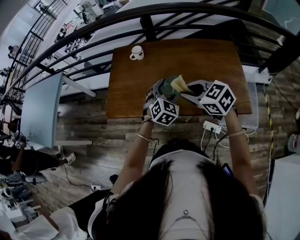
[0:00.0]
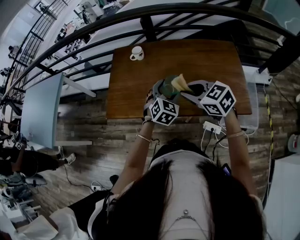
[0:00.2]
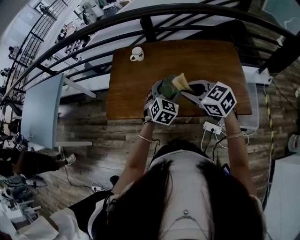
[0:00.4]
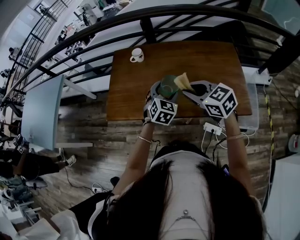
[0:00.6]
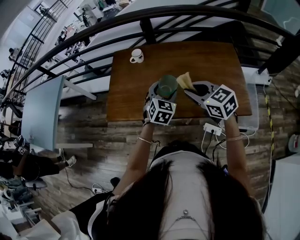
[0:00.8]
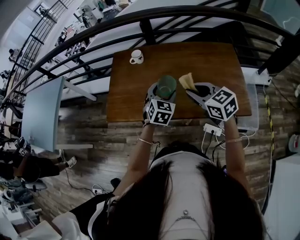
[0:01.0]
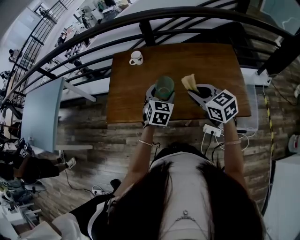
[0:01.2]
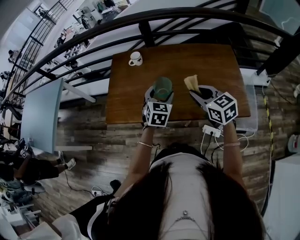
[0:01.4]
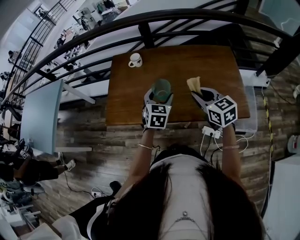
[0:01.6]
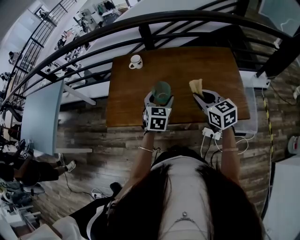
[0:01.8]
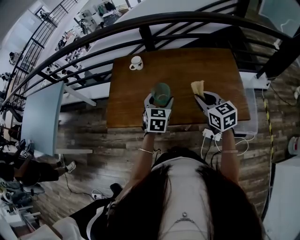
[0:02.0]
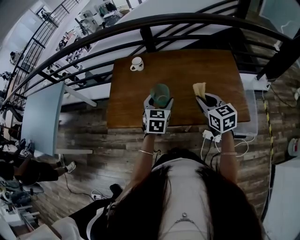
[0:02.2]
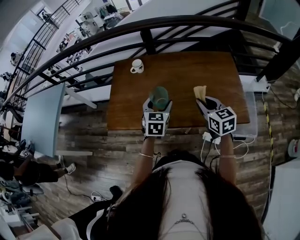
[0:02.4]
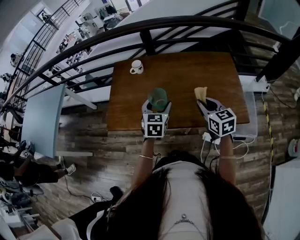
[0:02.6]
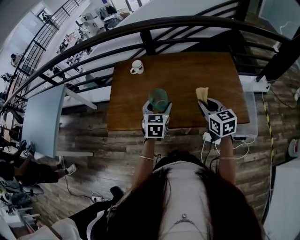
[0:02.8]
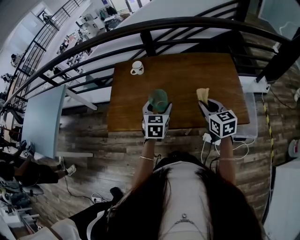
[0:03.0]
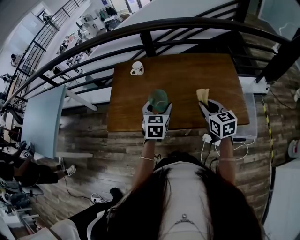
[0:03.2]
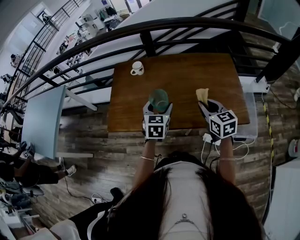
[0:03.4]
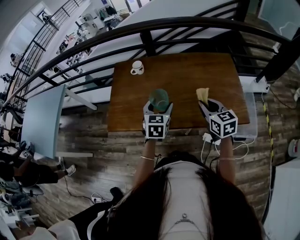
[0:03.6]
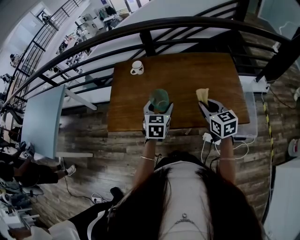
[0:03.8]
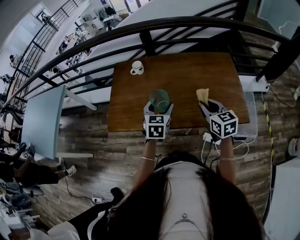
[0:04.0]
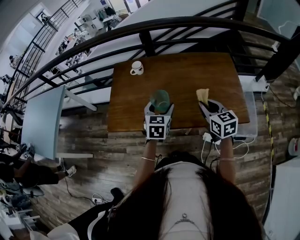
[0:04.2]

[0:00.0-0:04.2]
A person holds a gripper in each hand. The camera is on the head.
0:00.0 to 0:01.4: The right gripper travels to the right by about 5 cm, and turns by some 20 degrees; the left gripper turns by some 20 degrees.
0:01.4 to 0:02.8: The right gripper ends up approximately 5 cm from where it was.
0:02.8 to 0:04.2: Neither gripper changes place.

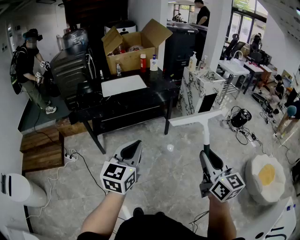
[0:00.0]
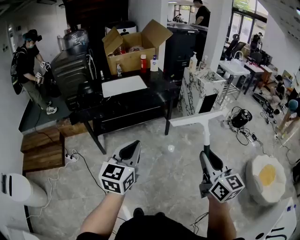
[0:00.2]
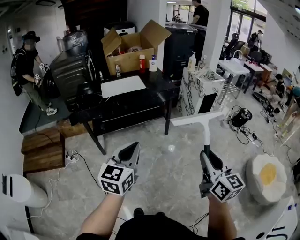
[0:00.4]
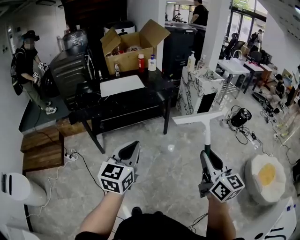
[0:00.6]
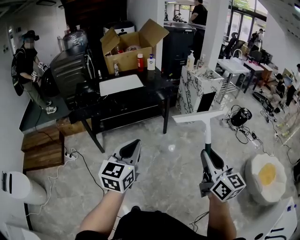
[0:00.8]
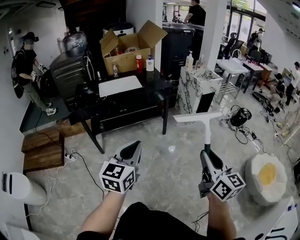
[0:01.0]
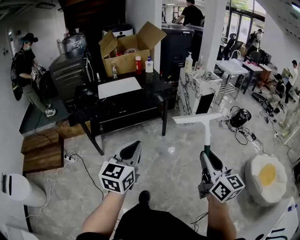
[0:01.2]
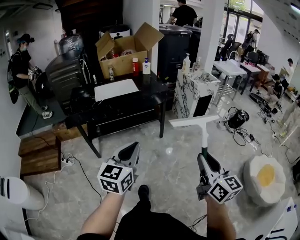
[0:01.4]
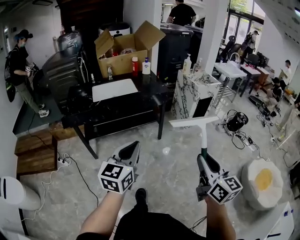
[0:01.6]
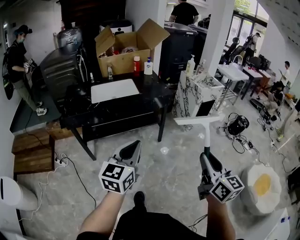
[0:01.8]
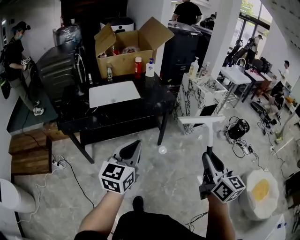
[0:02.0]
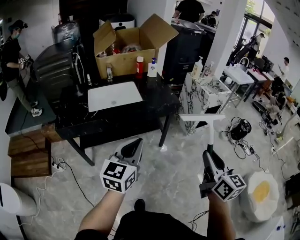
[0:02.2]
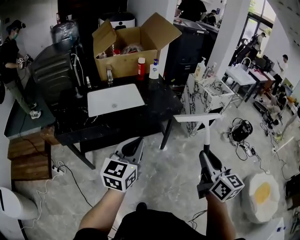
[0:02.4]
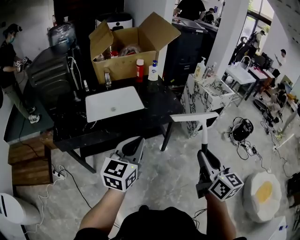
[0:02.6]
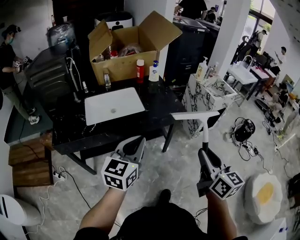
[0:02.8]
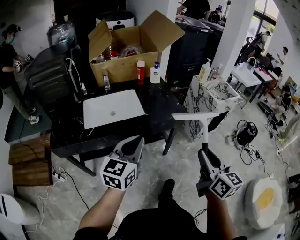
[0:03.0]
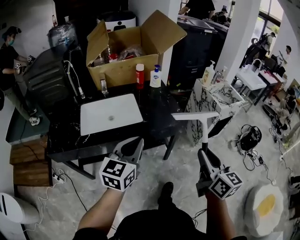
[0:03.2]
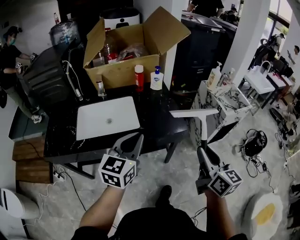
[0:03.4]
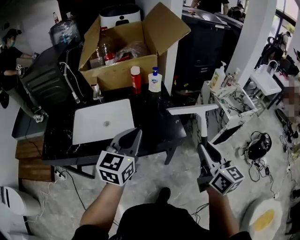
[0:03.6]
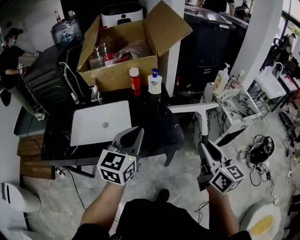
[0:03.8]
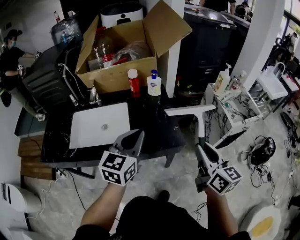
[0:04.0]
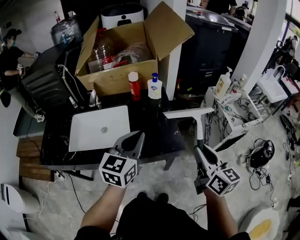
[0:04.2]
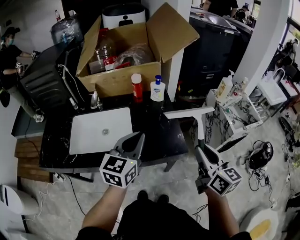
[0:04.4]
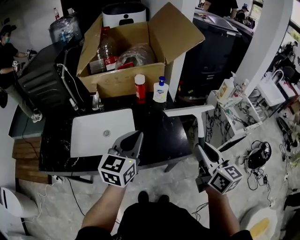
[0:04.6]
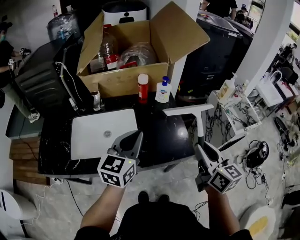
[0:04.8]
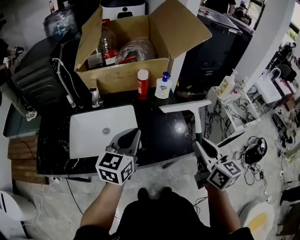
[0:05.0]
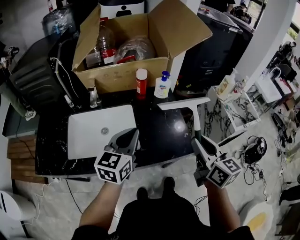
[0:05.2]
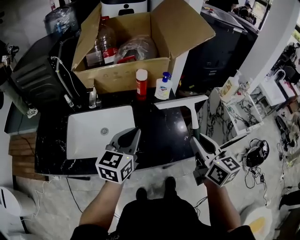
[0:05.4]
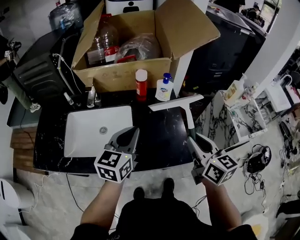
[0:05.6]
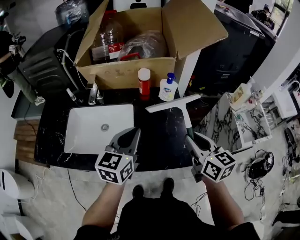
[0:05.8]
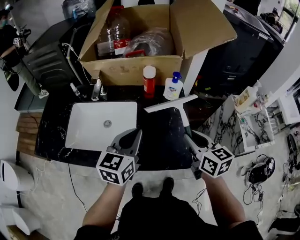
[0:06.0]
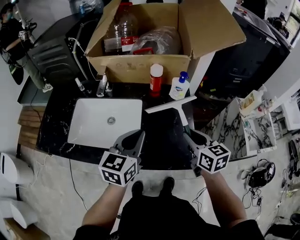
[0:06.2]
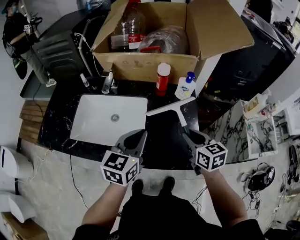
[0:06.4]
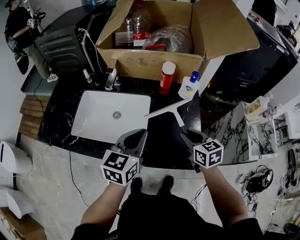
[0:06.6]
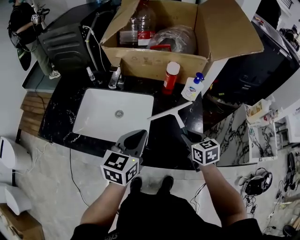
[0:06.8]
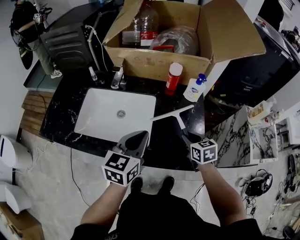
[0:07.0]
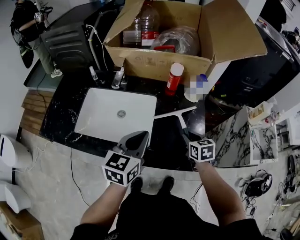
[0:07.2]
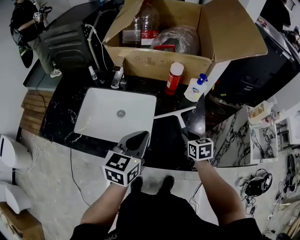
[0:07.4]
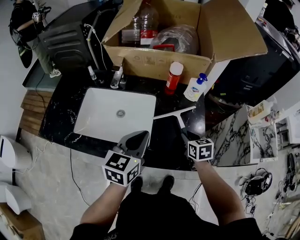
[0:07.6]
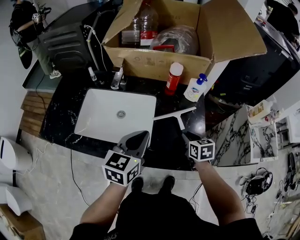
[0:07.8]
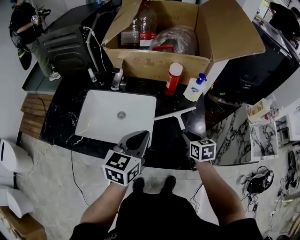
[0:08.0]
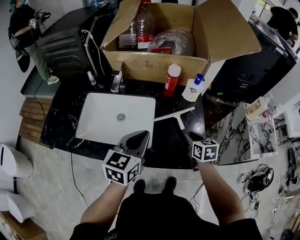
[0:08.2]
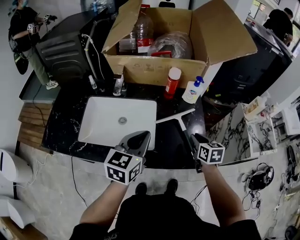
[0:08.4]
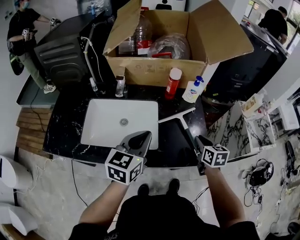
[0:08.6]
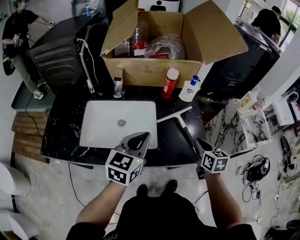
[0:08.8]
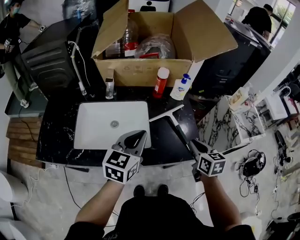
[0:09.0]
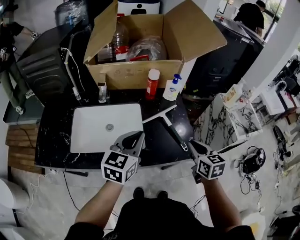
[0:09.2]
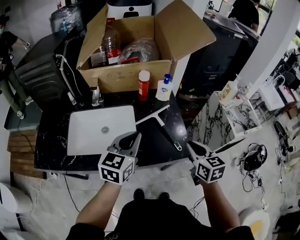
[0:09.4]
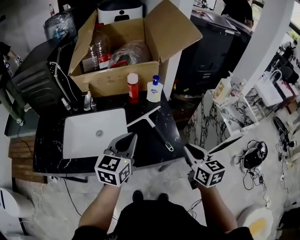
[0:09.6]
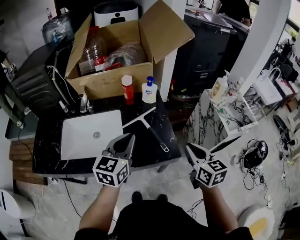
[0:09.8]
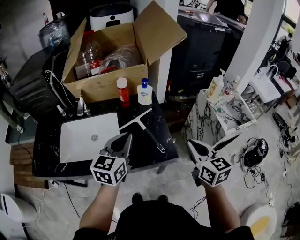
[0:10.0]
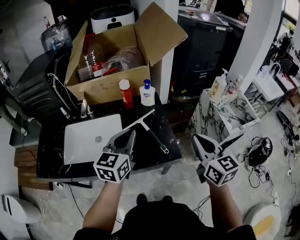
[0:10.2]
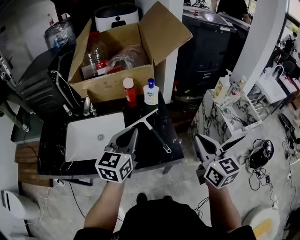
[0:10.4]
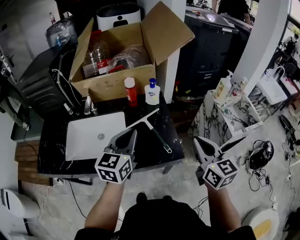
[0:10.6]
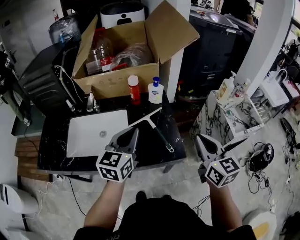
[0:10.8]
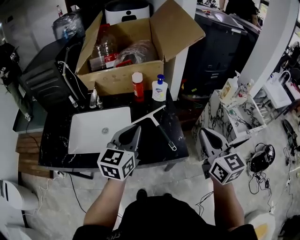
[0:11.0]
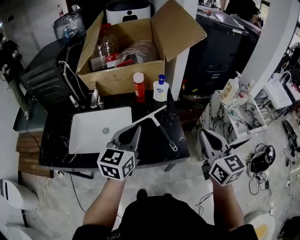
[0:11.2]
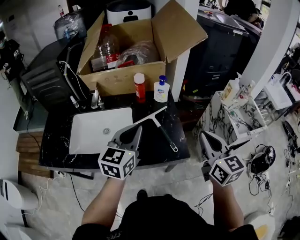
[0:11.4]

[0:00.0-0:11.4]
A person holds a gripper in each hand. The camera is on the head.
0:00.0 to 0:01.4: The grippers both shift to the right by approximately 5 cm.
0:01.4 to 0:02.8: The two grippers go approximately 40 cm forward.
0:02.8 to 0:04.2: The two grippers go about 35 cm forward.
0:04.2 to 0:05.6: The two grippers go roughly 15 cm forward and to the left.
0:05.6 to 0:07.2: The right gripper is displaced downward and forward by roughly 25 cm, and tips its fingers downward by some 30 degrees; the left gripper changes place by some 5 cm.
0:07.2 to 0:08.6: The right gripper travels upward by roughly 5 cm.
0:08.6 to 0:10.0: The left gripper is displaced to the right by approximately 15 cm. Meanwhile the right gripper moves upward, to the right and backward, about 20 cm.
0:10.0 to 0:11.4: The right gripper shifts by some 5 cm.

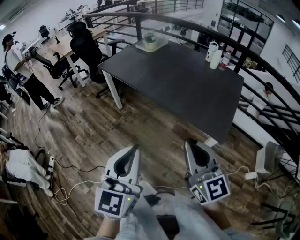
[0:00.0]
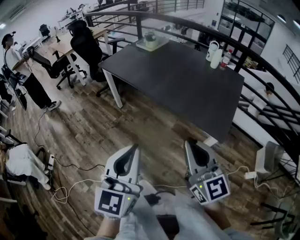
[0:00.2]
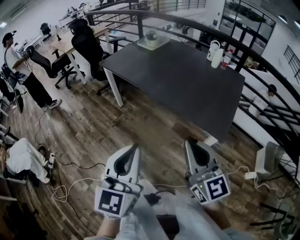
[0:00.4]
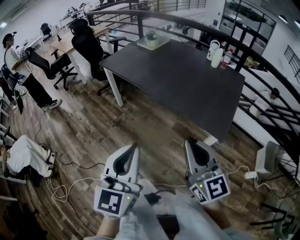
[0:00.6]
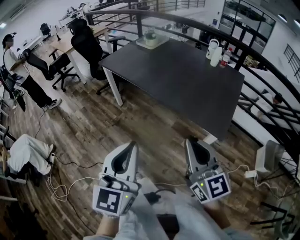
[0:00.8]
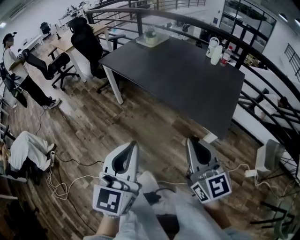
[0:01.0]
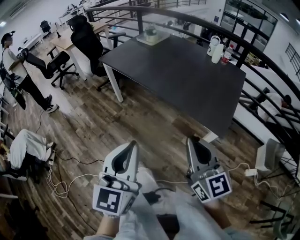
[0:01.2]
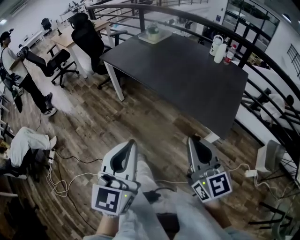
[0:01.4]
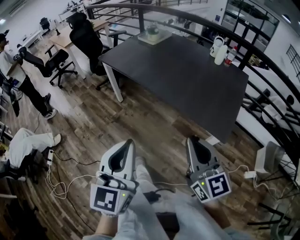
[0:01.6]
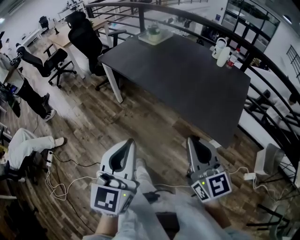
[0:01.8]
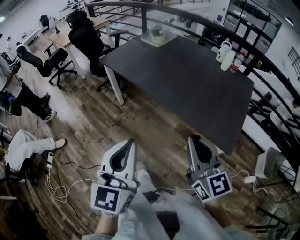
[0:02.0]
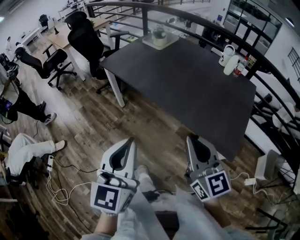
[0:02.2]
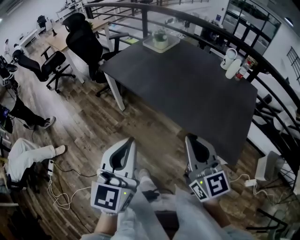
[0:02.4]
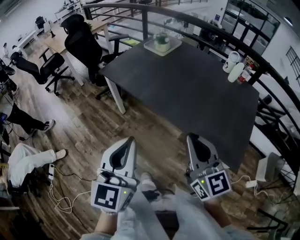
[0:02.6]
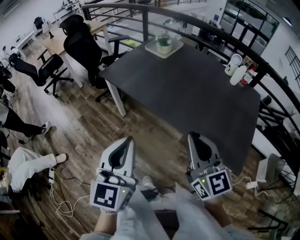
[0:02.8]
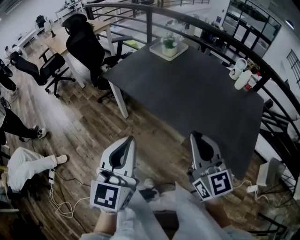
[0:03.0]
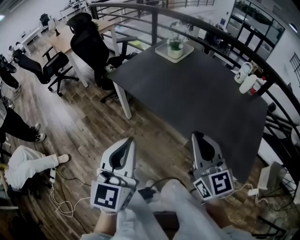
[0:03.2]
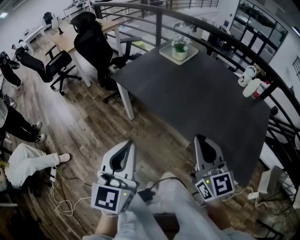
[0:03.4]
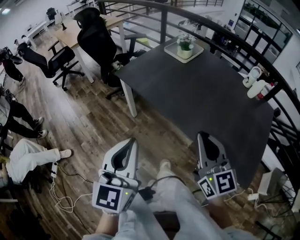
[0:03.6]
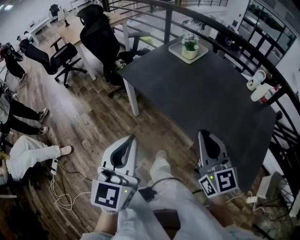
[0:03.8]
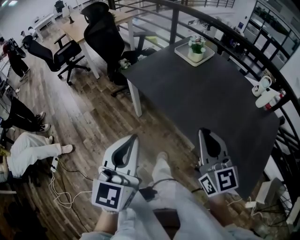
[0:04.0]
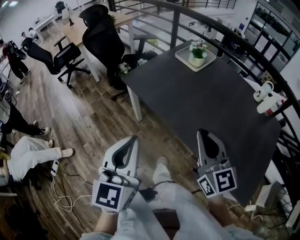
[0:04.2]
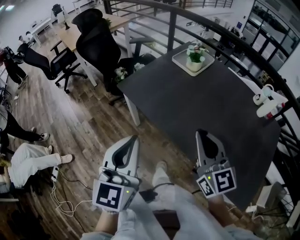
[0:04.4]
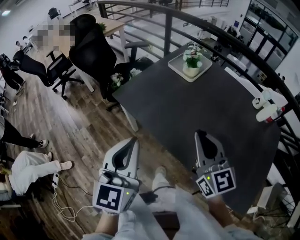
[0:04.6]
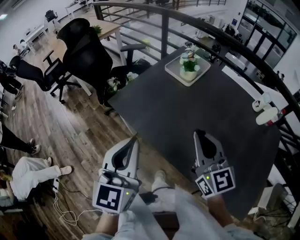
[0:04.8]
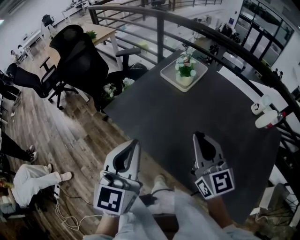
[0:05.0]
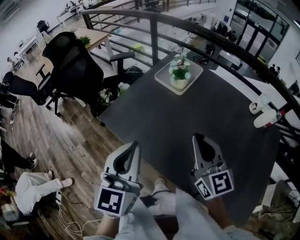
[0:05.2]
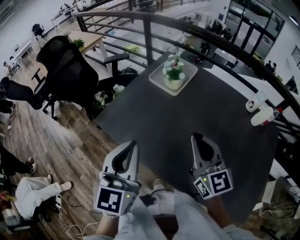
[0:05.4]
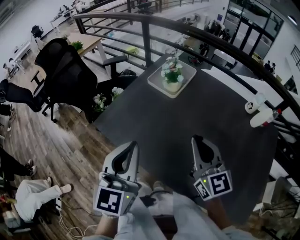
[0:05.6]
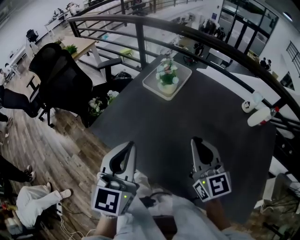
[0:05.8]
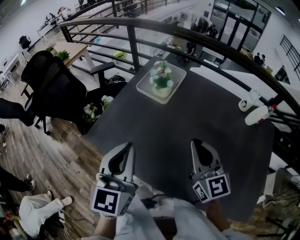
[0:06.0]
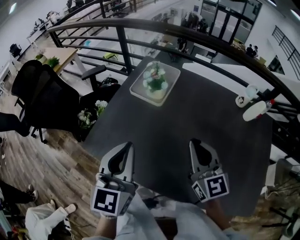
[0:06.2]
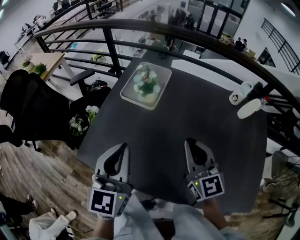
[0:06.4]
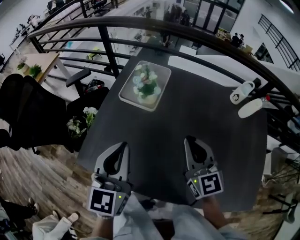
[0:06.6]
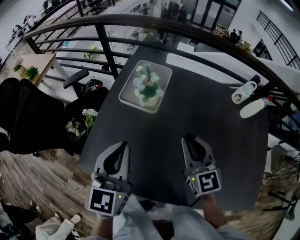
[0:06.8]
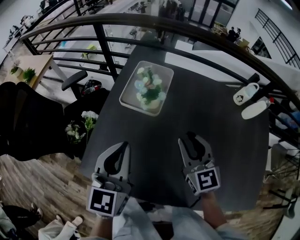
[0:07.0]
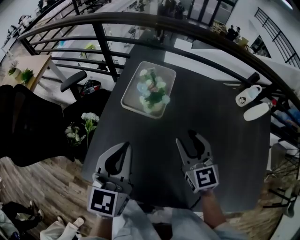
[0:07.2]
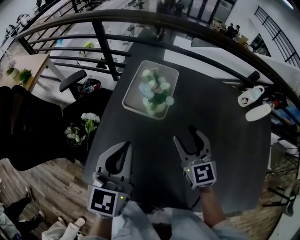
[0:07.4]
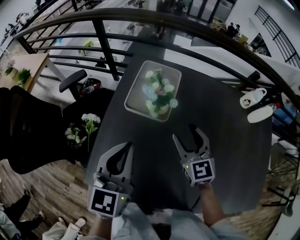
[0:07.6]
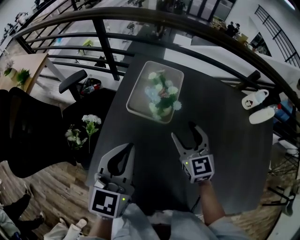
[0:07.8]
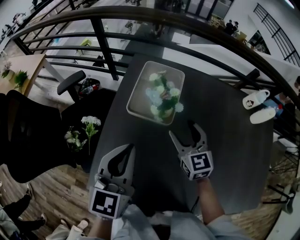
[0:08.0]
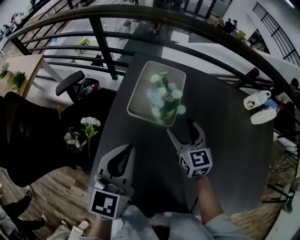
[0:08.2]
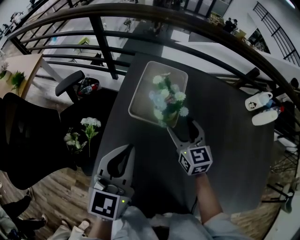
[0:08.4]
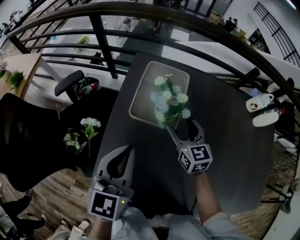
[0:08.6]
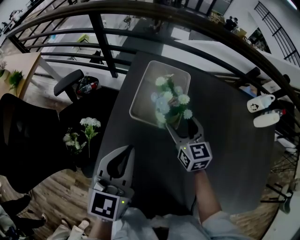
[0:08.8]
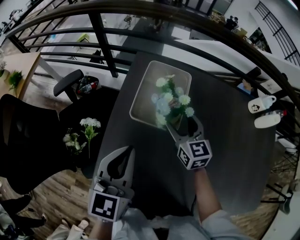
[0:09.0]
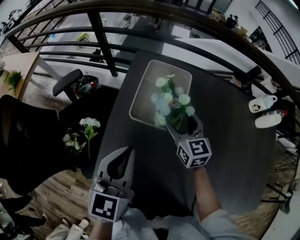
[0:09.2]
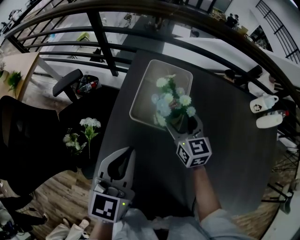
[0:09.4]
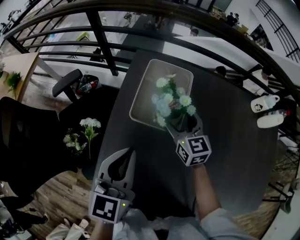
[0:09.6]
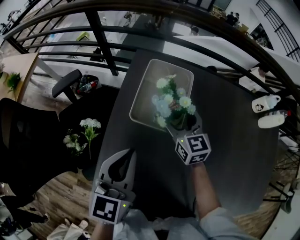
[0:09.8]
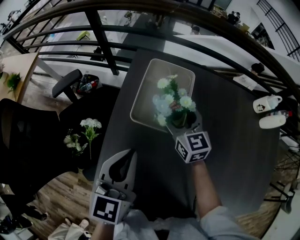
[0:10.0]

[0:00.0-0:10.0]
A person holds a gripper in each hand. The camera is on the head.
0:00.0 to 0:01.4: The grippers make only small movements.
0:01.4 to 0:02.8: Both grippers travel together forward and to the left, approximately 30 cm.
0:02.8 to 0:04.2: The grippers both shift forward and to the left by approximately 15 cm.
0:04.2 to 0:05.8: The grippers both shift forward and to the right by approximately 25 cm.
0:05.8 to 0:07.2: The left gripper is displaced forward by roughly 20 cm. Meanwhile the right gripper heads forward and downward, covering roughly 20 cm, rotates about 20 degrees, and opens up.
0:07.2 to 0:08.6: The left gripper goes about 10 cm forward and to the left, while the right gripper shifts approximately 20 cm forward, downward and to the left, and opens up.
0:08.6 to 0:10.0: The right gripper moves forward, about 5 cm.
